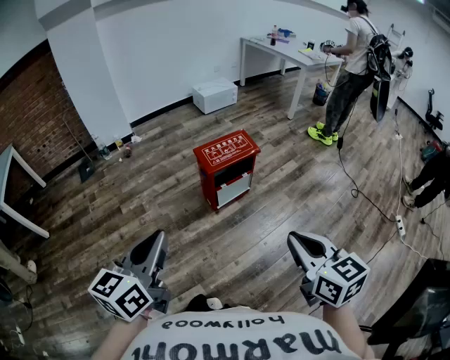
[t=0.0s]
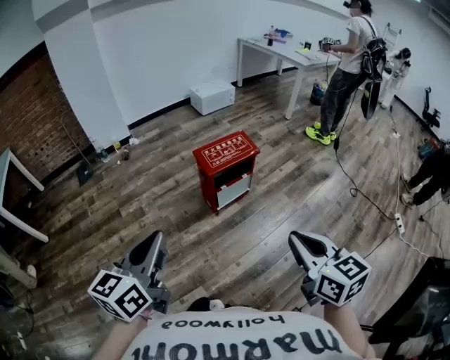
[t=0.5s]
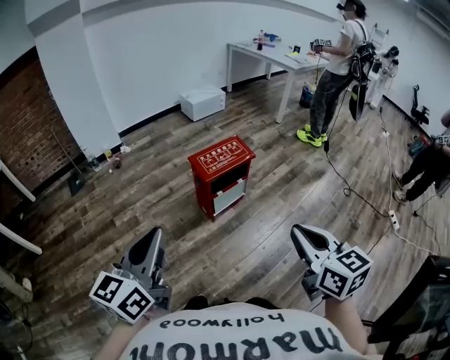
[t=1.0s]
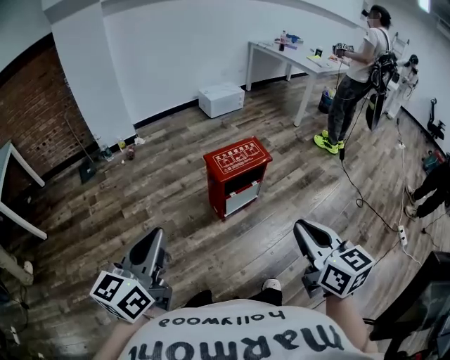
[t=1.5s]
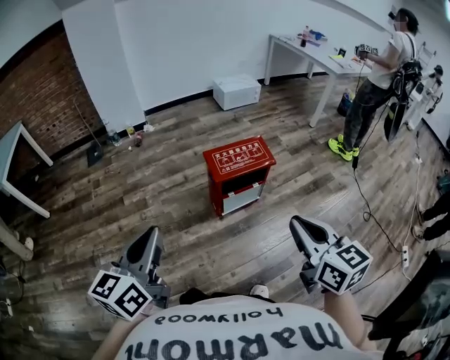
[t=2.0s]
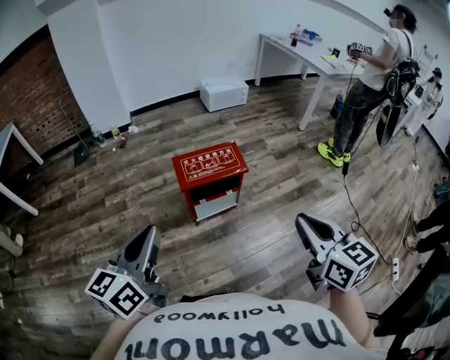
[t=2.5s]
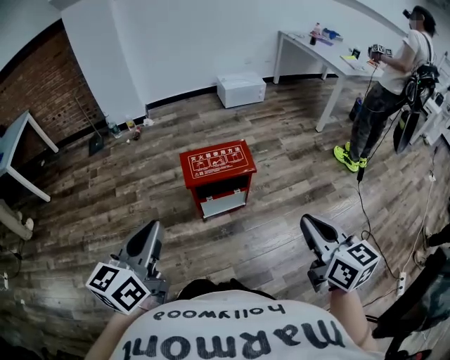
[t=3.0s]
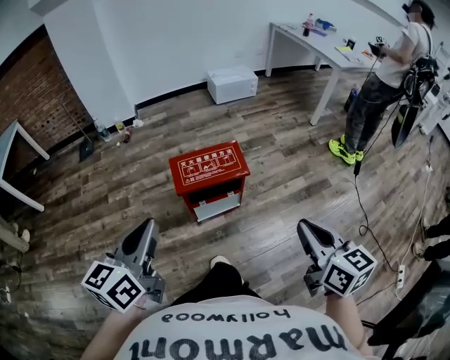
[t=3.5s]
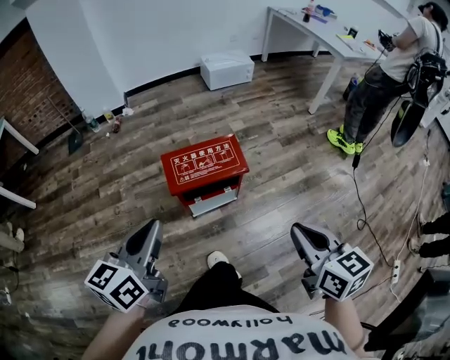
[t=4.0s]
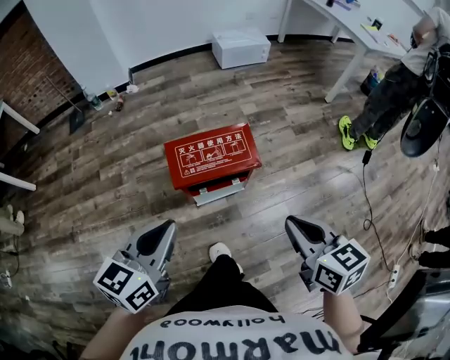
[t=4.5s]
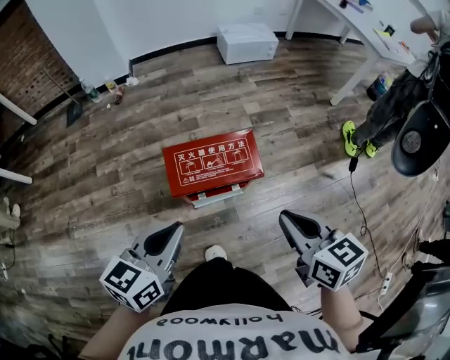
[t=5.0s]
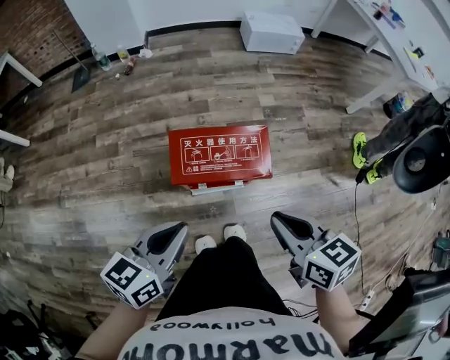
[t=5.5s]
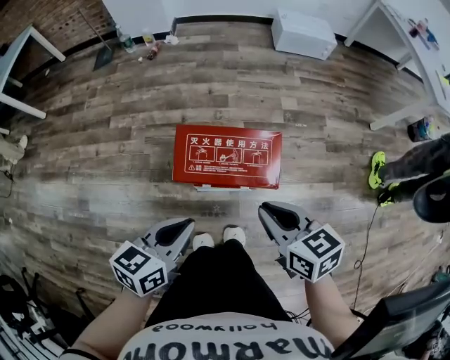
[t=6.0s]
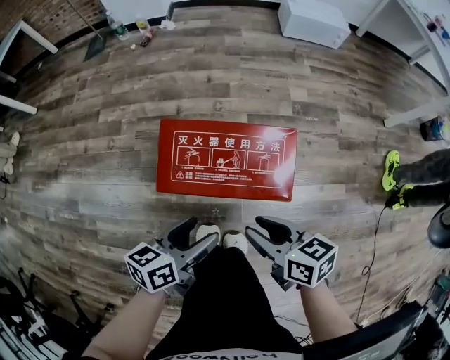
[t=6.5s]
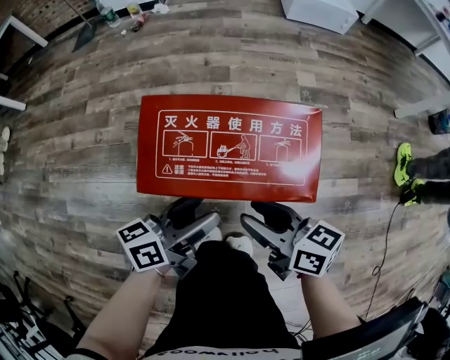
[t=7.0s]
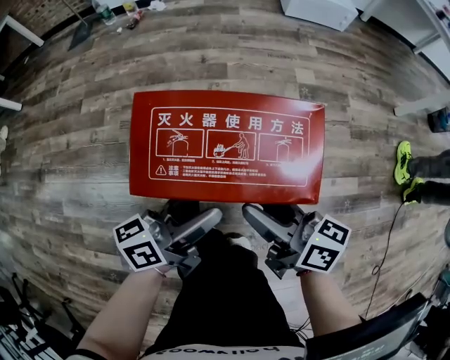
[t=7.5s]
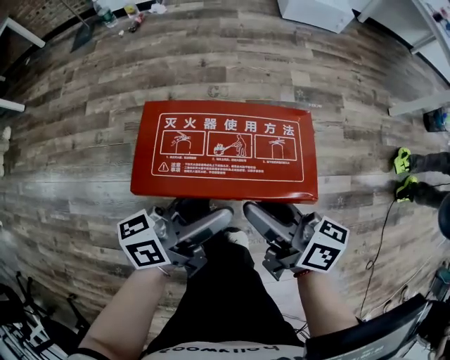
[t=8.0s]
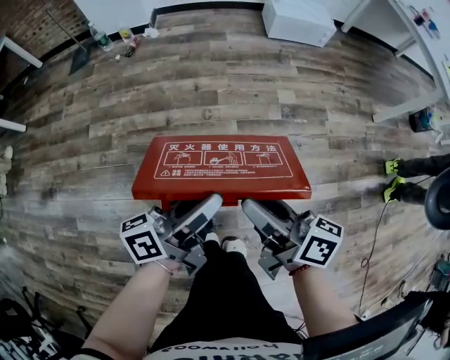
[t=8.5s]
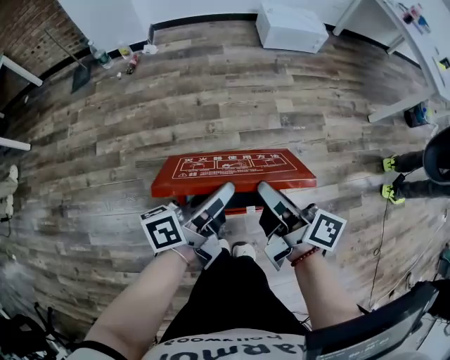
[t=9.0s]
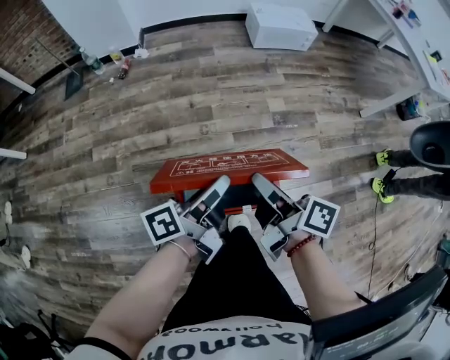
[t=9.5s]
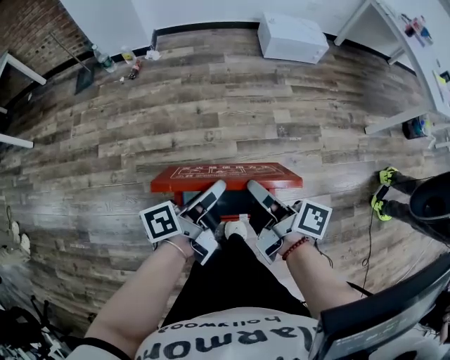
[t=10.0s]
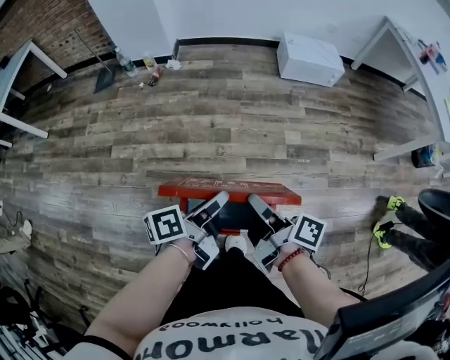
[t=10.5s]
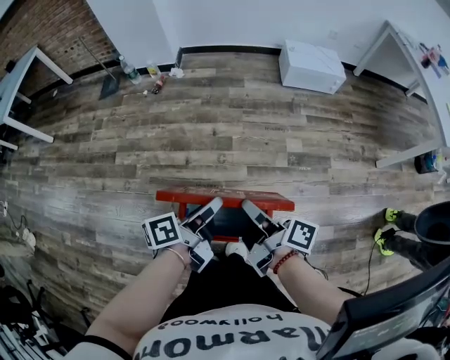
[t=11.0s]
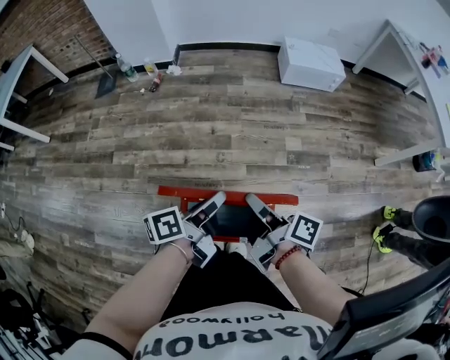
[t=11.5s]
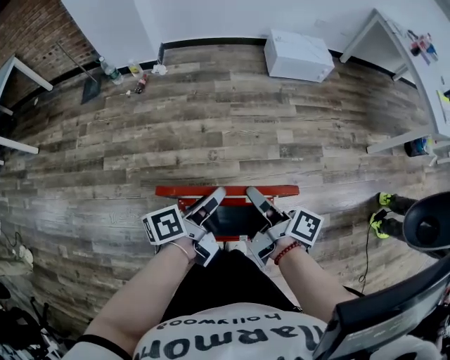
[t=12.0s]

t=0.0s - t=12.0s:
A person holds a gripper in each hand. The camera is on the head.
t=0.0s - t=2.0s: The left gripper travels forward by some 10 cm. The right gripper travels forward by roughly 15 cm.
t=2.0s - t=4.0s: The grippers both shift to the right and forward by about 25 cm.
t=4.0s - t=6.0s: The left gripper goes some 25 cm downward, forward and to the right; the right gripper goes about 30 cm forward and downward, and turns by some 30 degrees.
t=6.0s - t=8.0s: The right gripper travels downward by about 15 cm, changes its angle by some 40 degrees, and opens its fingers, while the left gripper moves downward, forward and to the right, approximately 20 cm, points its fingers about 30 degrees further upward, and opens.
t=8.0s - t=10.0s: Both grippers travel together forward and upward, about 20 cm. The right gripper turns by approximately 30 degrees, and closes its fingers. The left gripper swivels roughly 30 degrees, and closes.
t=10.0s - t=12.0s: Both grippers travel together forward, some 5 cm.

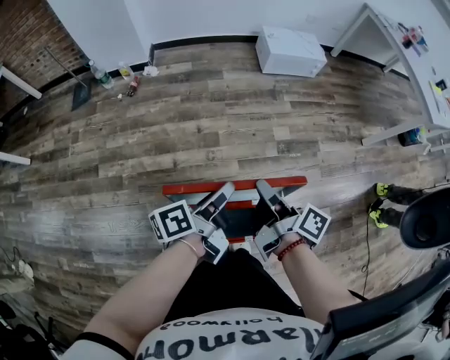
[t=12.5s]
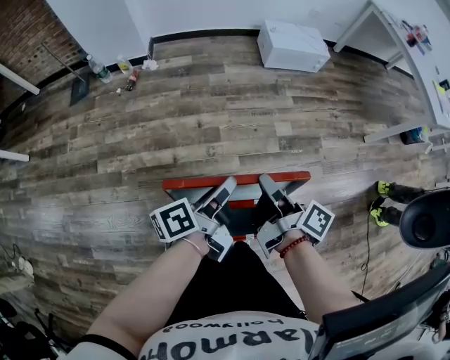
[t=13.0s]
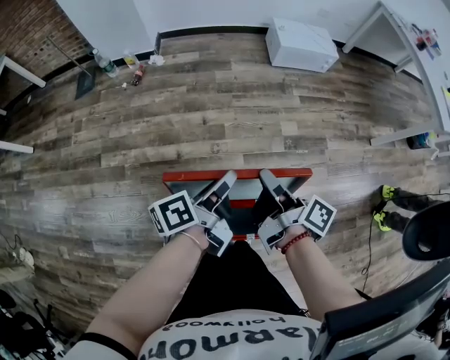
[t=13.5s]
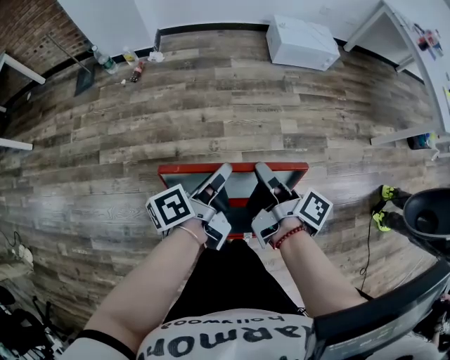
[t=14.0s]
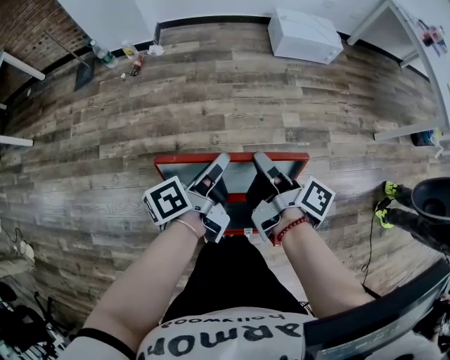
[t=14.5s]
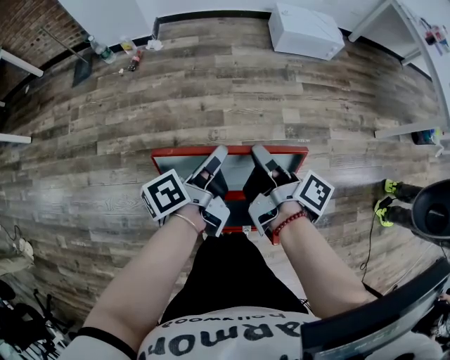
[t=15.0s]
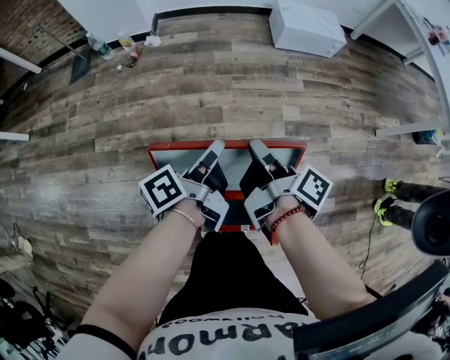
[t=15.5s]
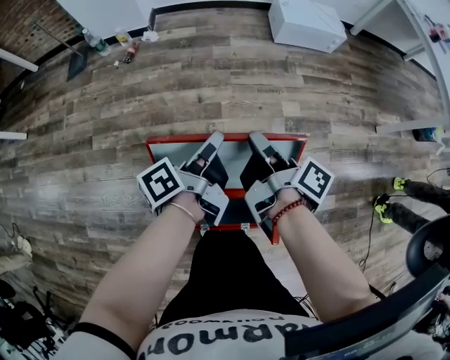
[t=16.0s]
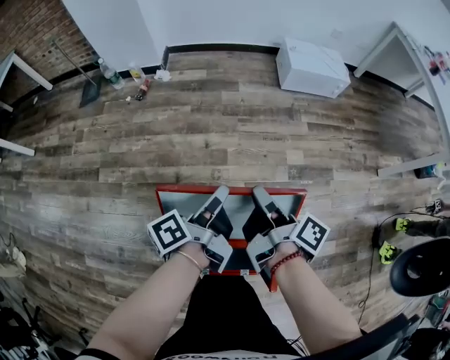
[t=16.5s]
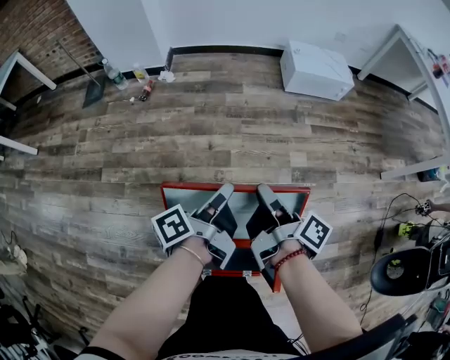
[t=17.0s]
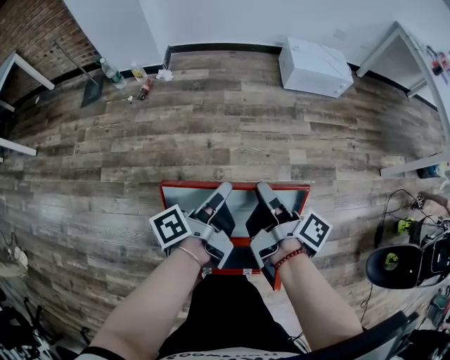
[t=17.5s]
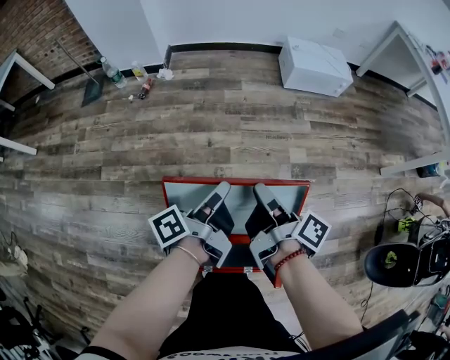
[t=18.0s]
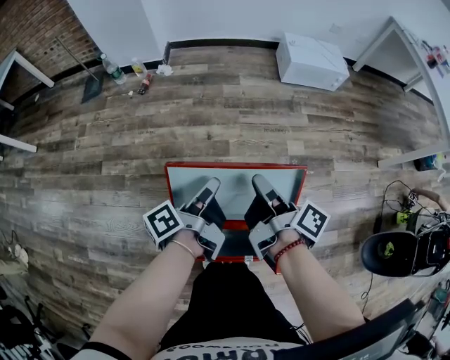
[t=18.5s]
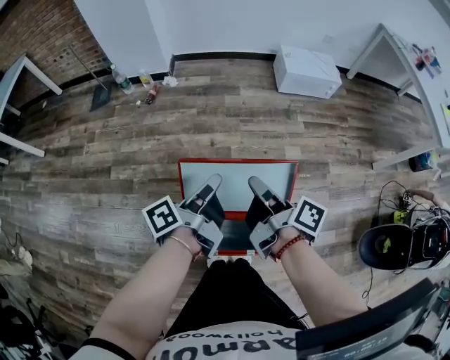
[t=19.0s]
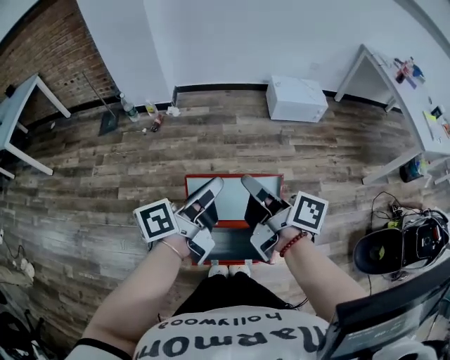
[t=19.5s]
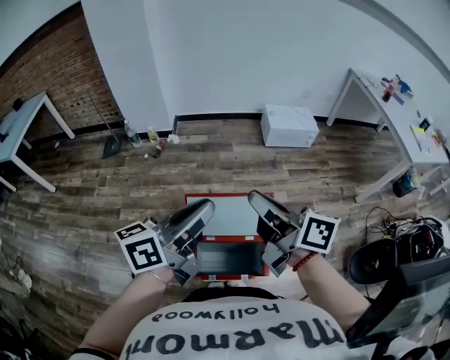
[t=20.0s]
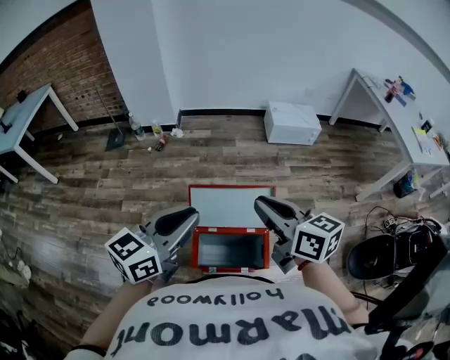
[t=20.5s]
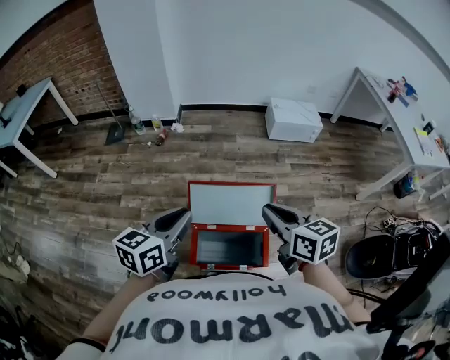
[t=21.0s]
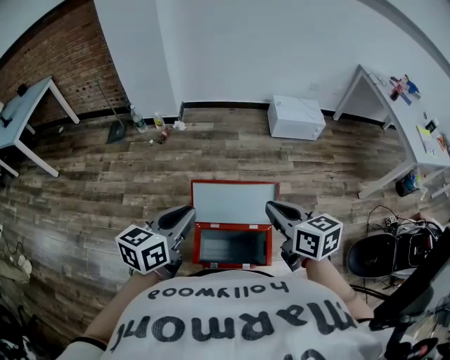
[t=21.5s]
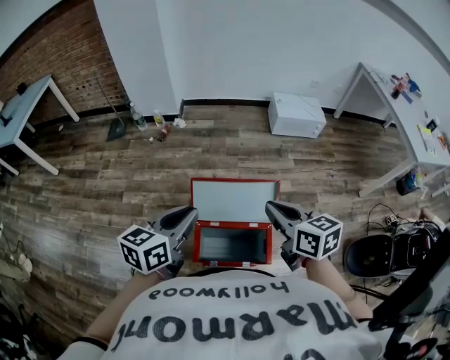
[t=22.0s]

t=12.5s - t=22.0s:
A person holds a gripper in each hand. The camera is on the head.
t=12.5s - t=14.5s: The left gripper ends up about 5 cm from where it was; the right gripper shifts by approximately 5 cm.
t=14.5s - t=16.5s: The left gripper shifts by about 5 cm; the right gripper changes place by roughly 5 cm.
t=16.5s - t=18.0s: The grippers move only a little.
t=18.0s - t=20.0s: The right gripper is displaced upward by about 35 cm, and rotates roughly 40 degrees. Meanwhile the left gripper is displaced upward and backward by about 35 cm, and twists approximately 50 degrees clockwise, seen from behind.
t=20.0s - t=22.0s: The right gripper shifts about 10 cm downward, and changes its angle by about 40 degrees. Meanwhile the left gripper moves downward and to the left, approximately 10 cm, and changes its angle by approximately 30 degrees.

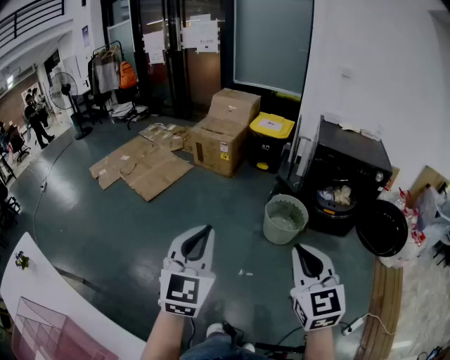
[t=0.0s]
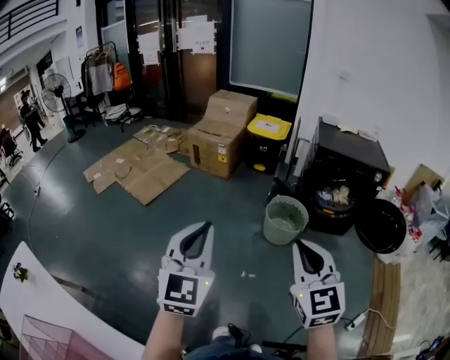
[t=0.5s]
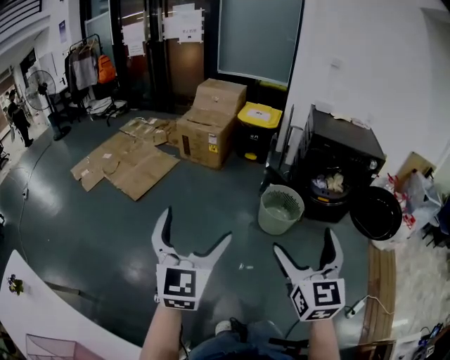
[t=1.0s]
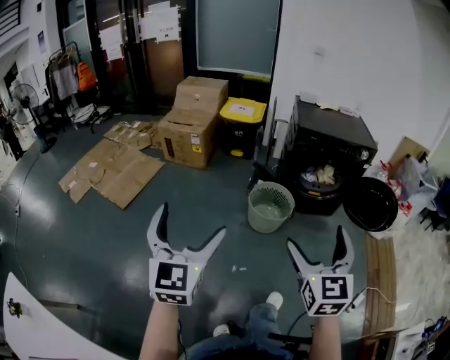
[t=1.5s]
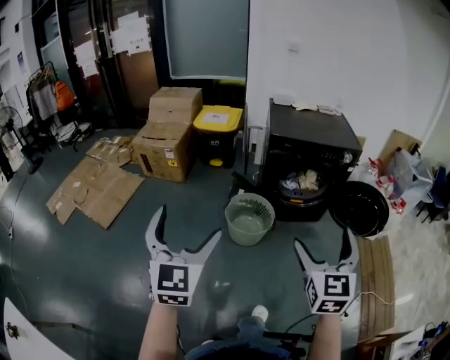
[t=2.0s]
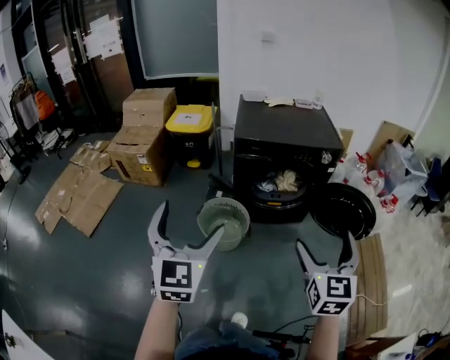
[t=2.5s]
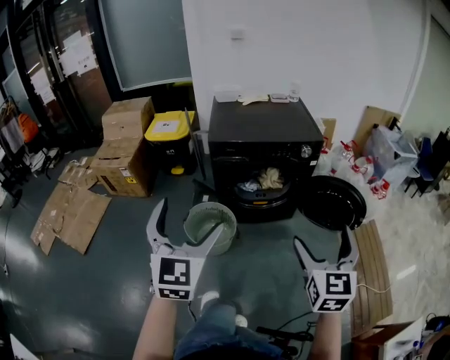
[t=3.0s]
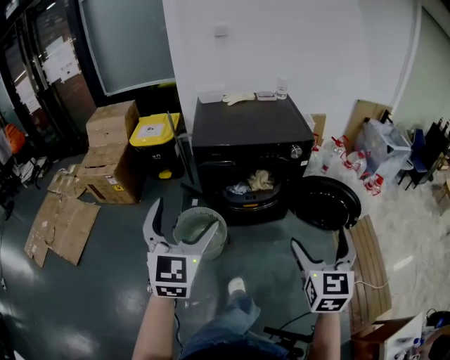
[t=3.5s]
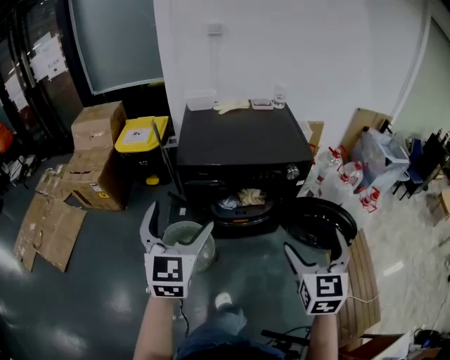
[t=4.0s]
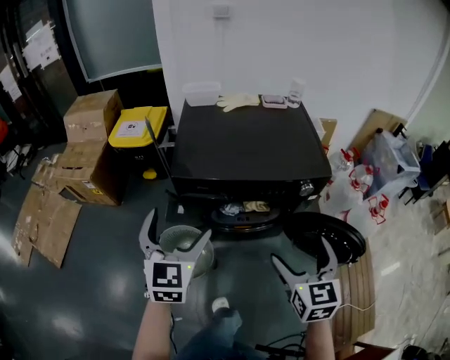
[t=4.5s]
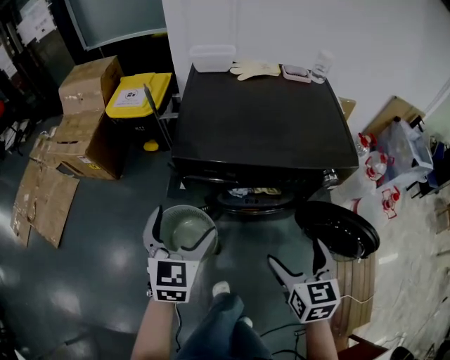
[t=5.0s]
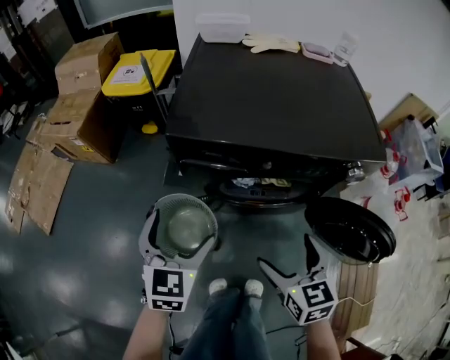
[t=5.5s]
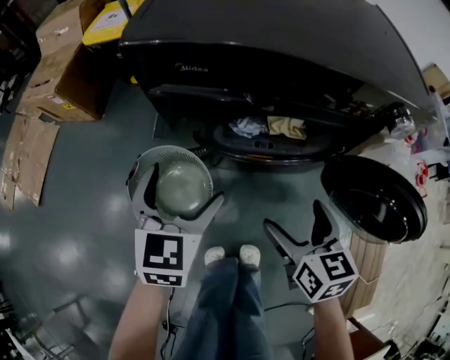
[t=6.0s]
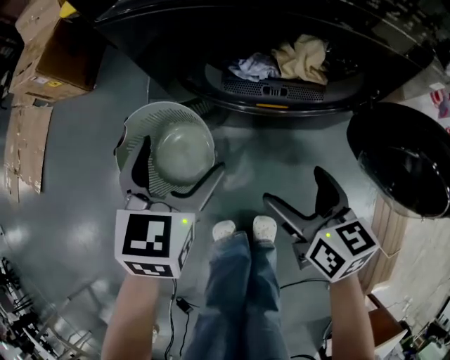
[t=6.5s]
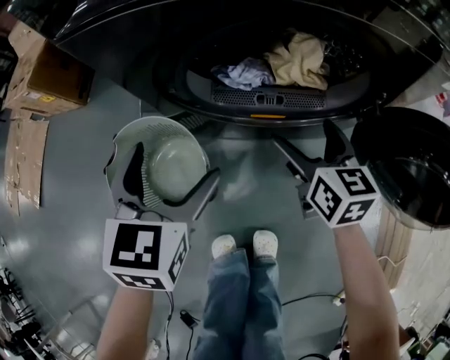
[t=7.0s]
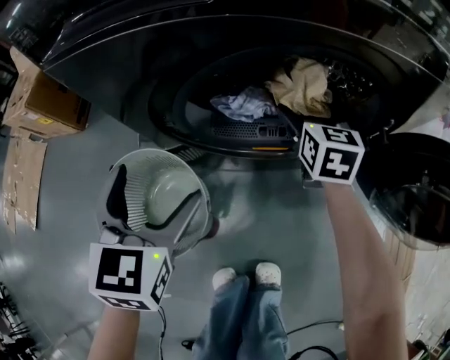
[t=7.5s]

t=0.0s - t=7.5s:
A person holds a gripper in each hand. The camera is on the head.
t=0.0s - t=2.0s: The right gripper travels to the right and forward by some 25 cm, swivels roughly 30 degrees, and opens its fingers. The left gripper shifts approximately 25 cm forward and to the right, and opens its fingers.
t=2.0s - t=4.0s: The two grippers travel together, forward and to the right, some 40 cm.
t=4.0s - t=5.5s: The two grippers go roughly 30 cm downward and forward. The right gripper rotates roughly 30 degrees. The left gripper turns by about 20 degrees.
t=5.5s - t=7.5s: The right gripper travels downward and forward by about 40 cm; the left gripper moves downward, roughly 25 cm.
